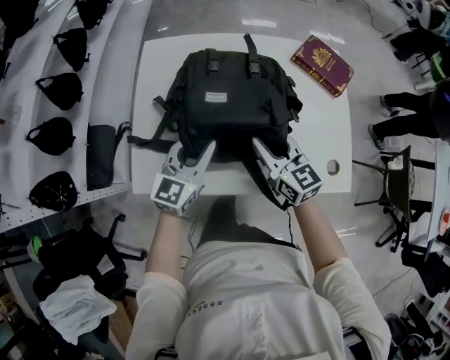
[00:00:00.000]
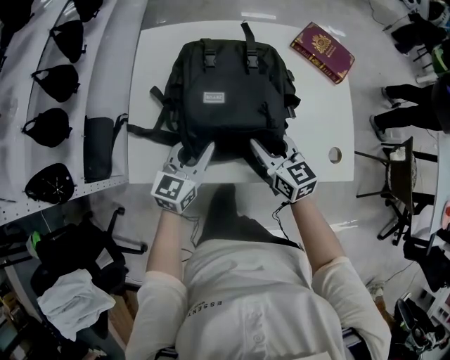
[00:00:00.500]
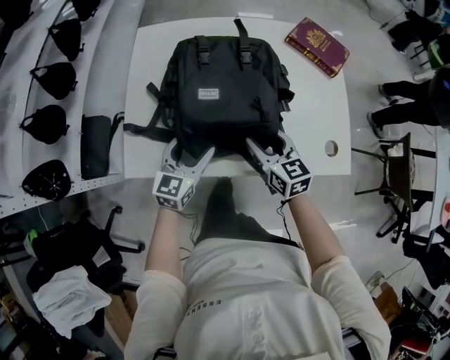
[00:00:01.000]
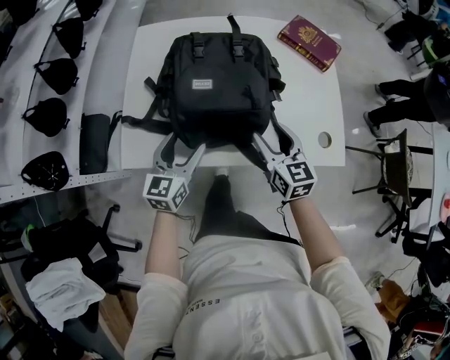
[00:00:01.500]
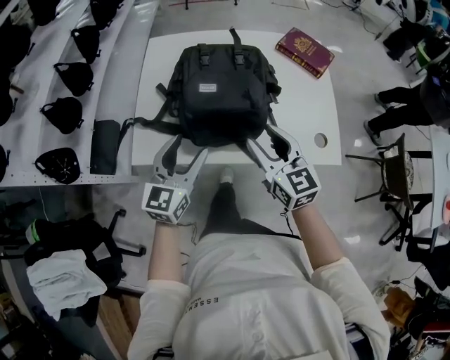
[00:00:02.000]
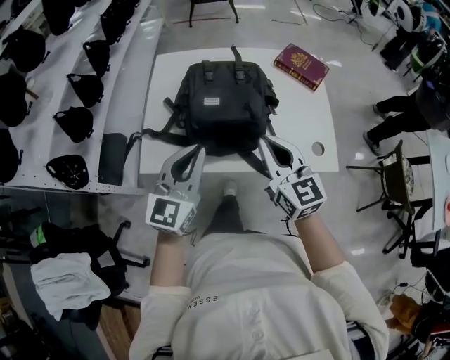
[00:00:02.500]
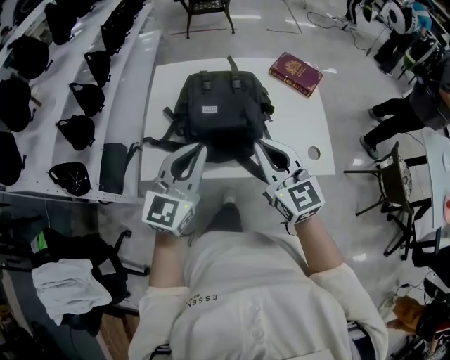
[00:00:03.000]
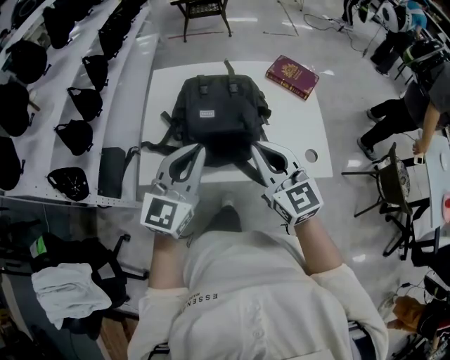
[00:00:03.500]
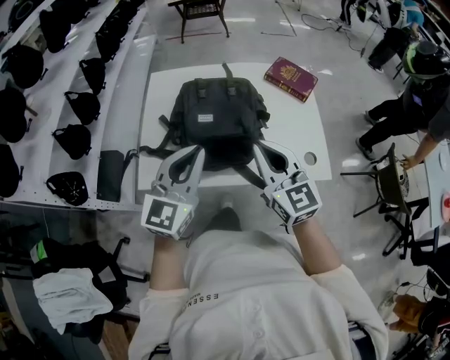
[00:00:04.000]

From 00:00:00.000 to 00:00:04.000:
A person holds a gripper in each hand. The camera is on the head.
From 00:00:00.000 to 00:00:02.000: Both grippers move backward and upward, approximately 15 cm. The right gripper opens. Meanwhile the left gripper opens its fingers.
From 00:00:02.000 to 00:00:04.000: The two grippers go approximately 10 cm upward. The right gripper closes; the left gripper closes.

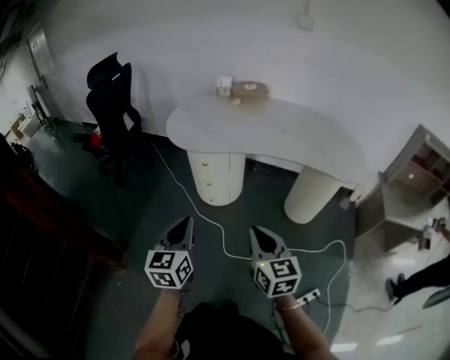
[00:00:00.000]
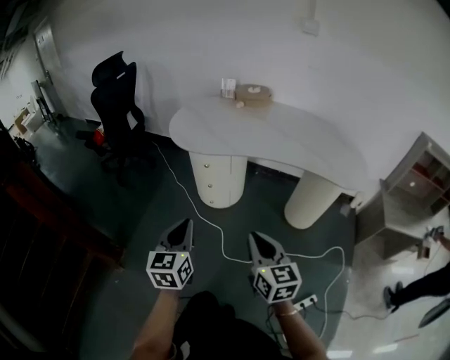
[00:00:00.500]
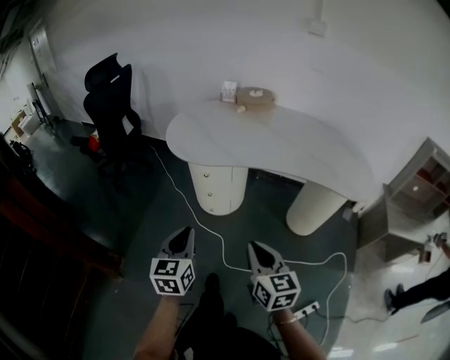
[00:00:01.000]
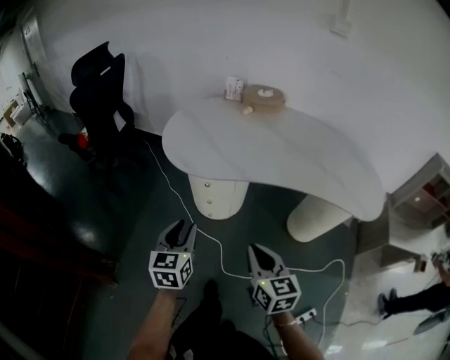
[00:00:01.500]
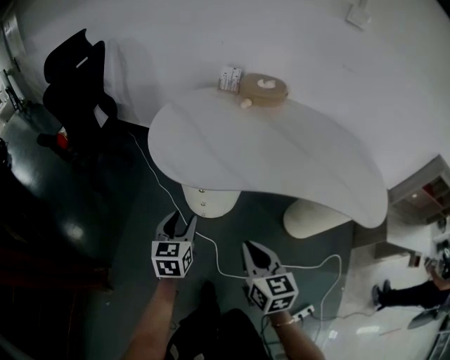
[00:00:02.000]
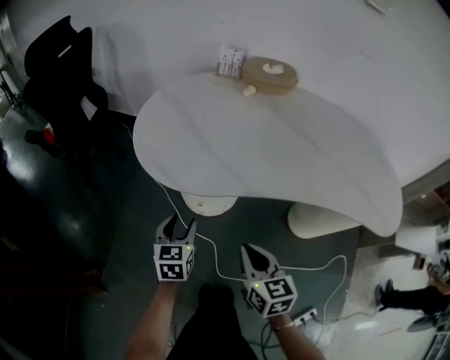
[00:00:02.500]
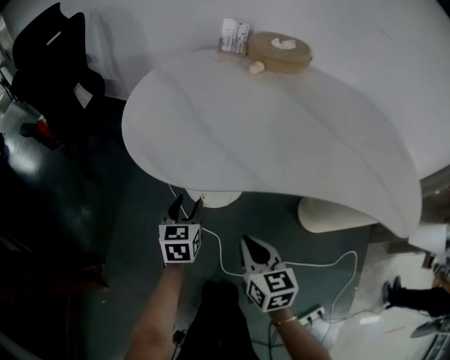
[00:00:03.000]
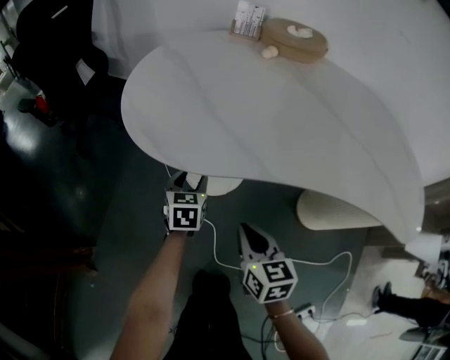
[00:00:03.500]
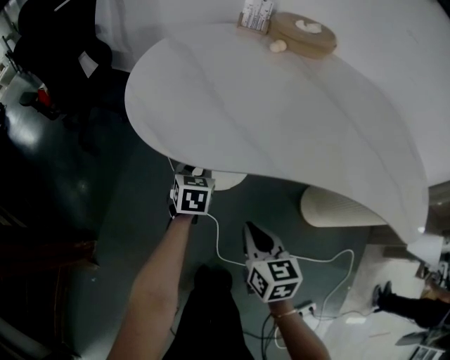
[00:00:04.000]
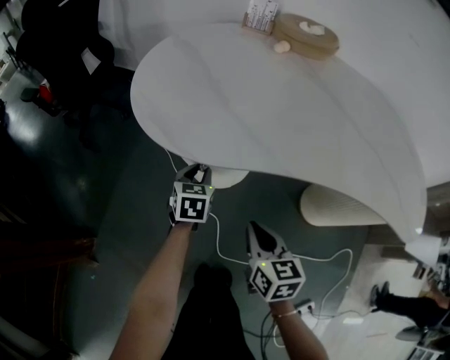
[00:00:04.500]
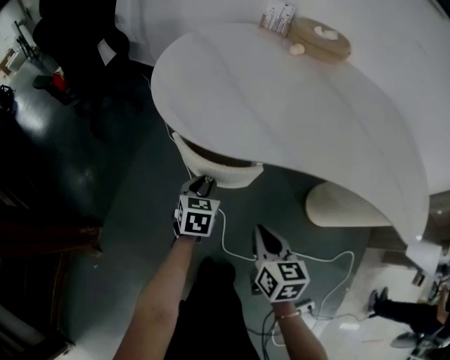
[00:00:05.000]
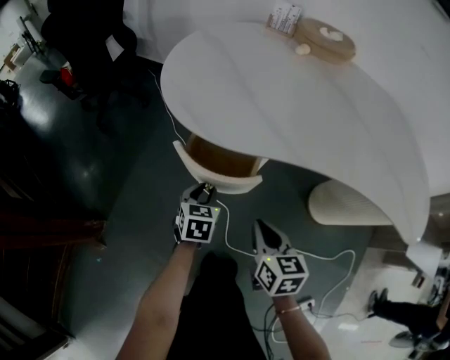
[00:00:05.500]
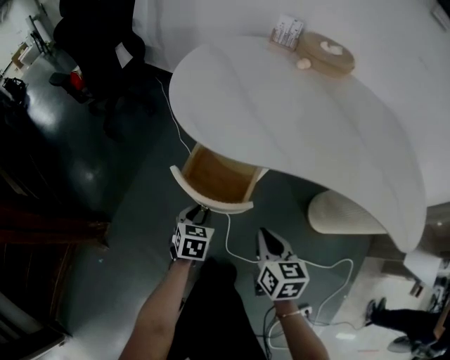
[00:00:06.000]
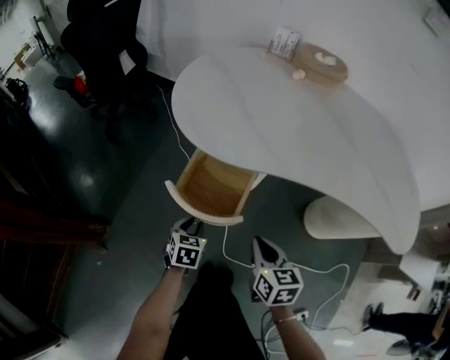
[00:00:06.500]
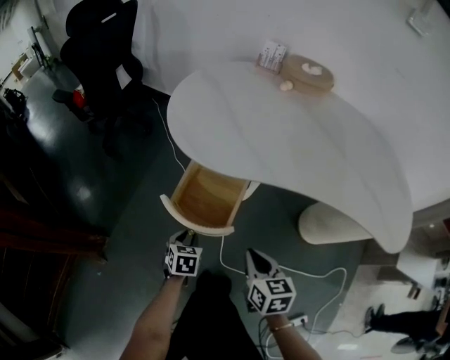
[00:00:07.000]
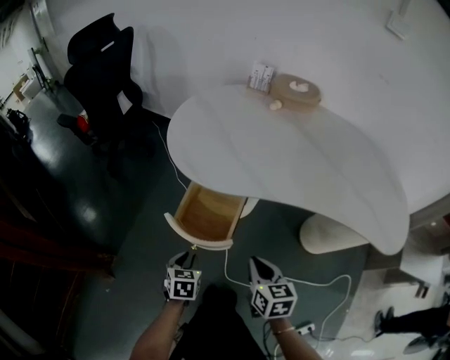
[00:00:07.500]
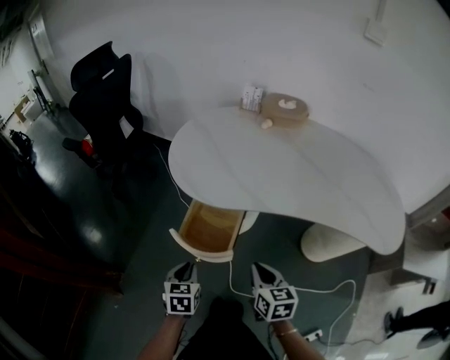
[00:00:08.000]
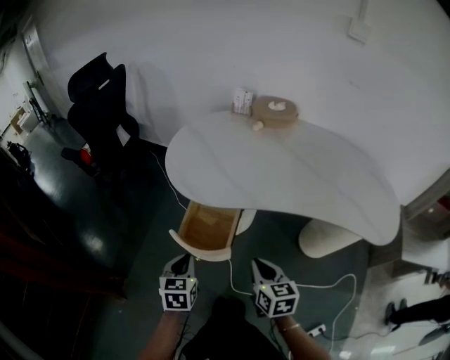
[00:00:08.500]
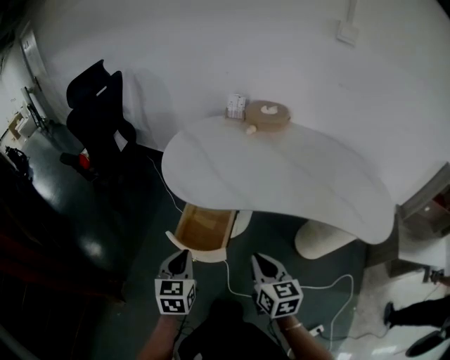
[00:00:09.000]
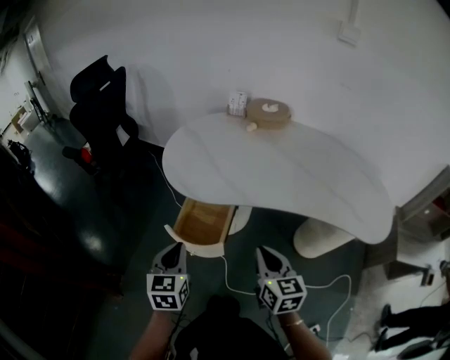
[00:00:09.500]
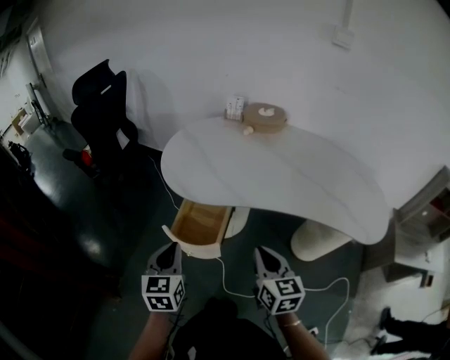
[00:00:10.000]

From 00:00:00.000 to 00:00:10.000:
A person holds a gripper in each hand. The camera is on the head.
From 00:00:00.000 to 00:00:02.000: The right gripper heads forward, covering roughly 25 cm, while the left gripper goes some 30 cm forward and downward, and opens.
From 00:00:02.000 to 00:00:04.000: Both grippers travel together downward and forward, some 25 cm.
From 00:00:04.000 to 00:00:06.000: The left gripper shifts approximately 20 cm backward, while the right gripper moves approximately 5 cm.
From 00:00:06.000 to 00:00:08.000: The right gripper moves upward, roughly 10 cm; the left gripper travels upward and backward by approximately 15 cm.
From 00:00:08.000 to 00:00:10.000: The right gripper shifts about 10 cm upward. The left gripper moves upward, roughly 15 cm, and changes its angle by approximately 20 degrees.

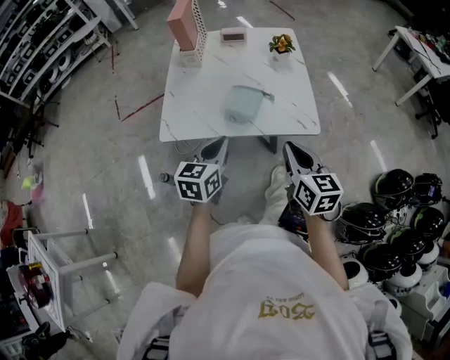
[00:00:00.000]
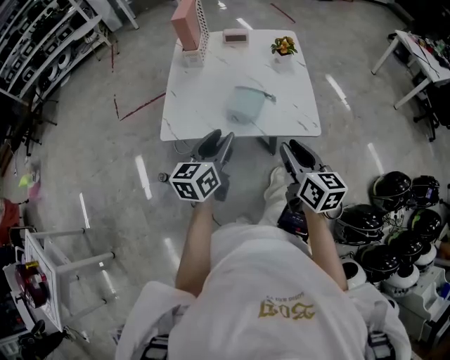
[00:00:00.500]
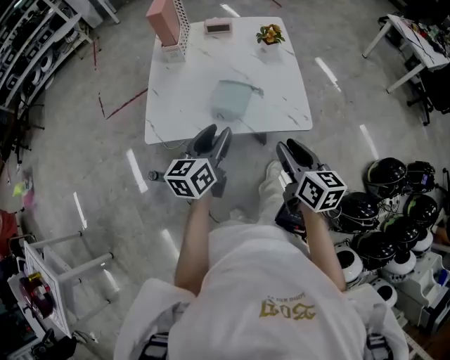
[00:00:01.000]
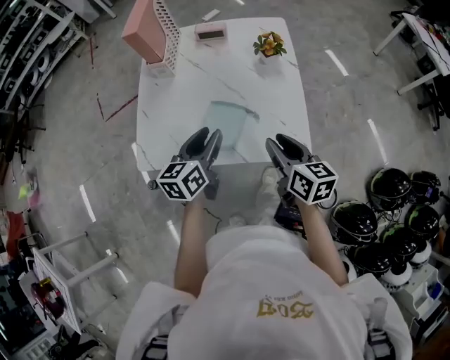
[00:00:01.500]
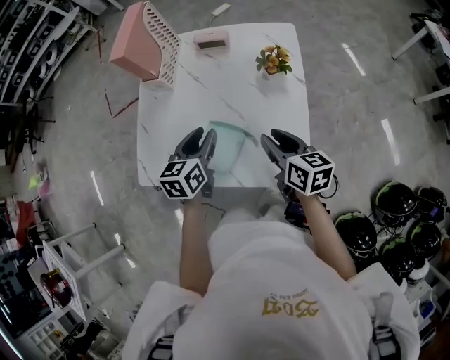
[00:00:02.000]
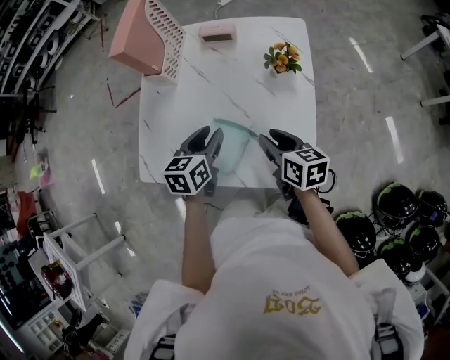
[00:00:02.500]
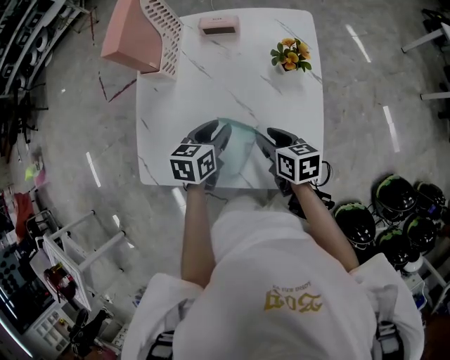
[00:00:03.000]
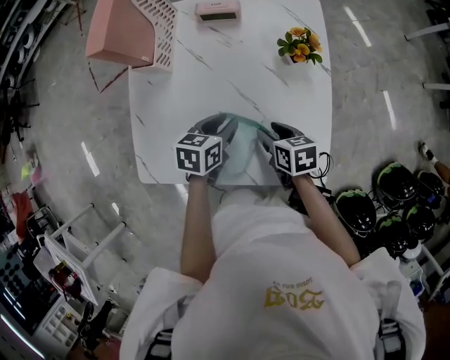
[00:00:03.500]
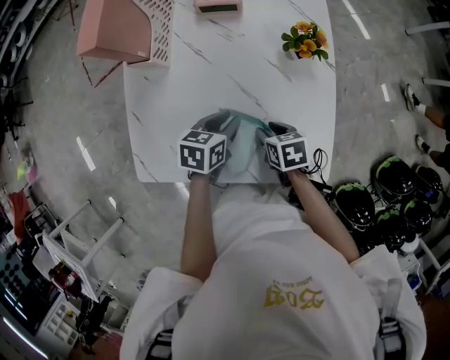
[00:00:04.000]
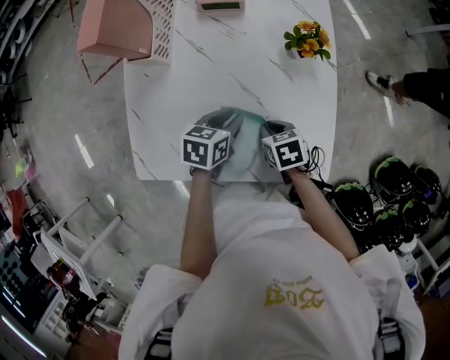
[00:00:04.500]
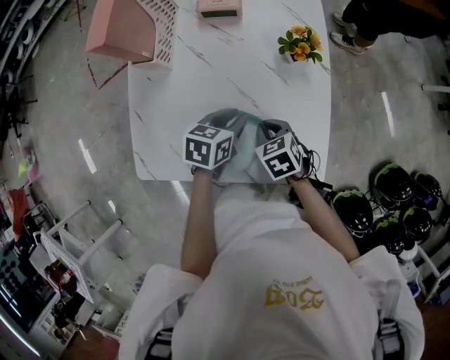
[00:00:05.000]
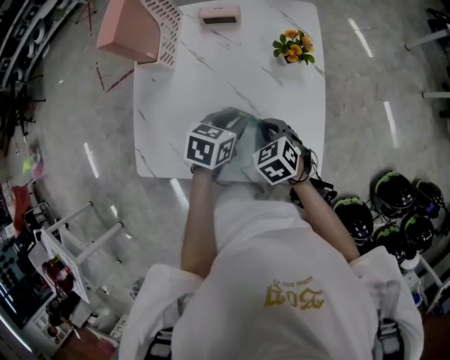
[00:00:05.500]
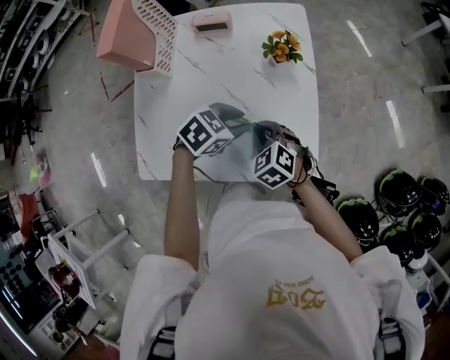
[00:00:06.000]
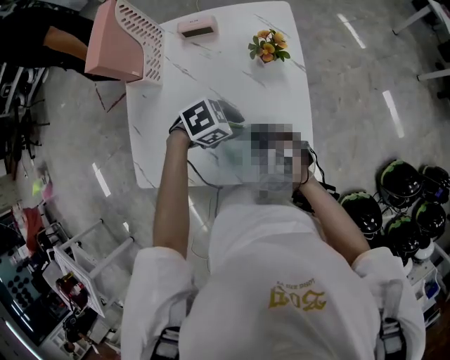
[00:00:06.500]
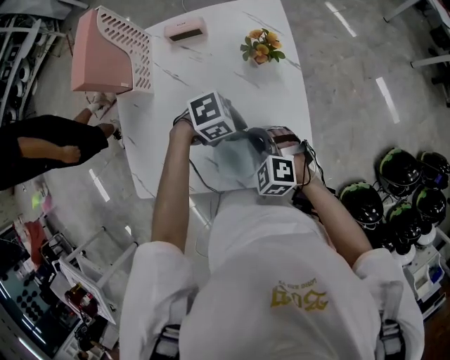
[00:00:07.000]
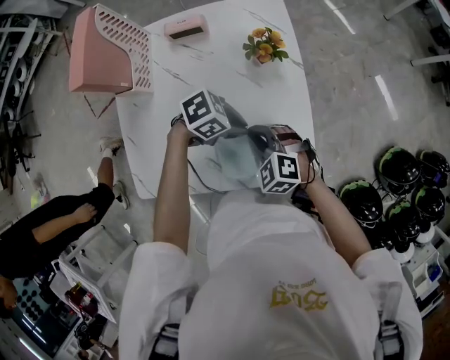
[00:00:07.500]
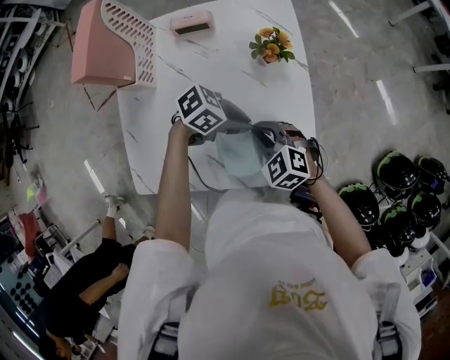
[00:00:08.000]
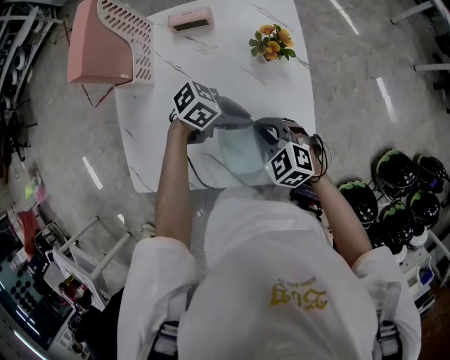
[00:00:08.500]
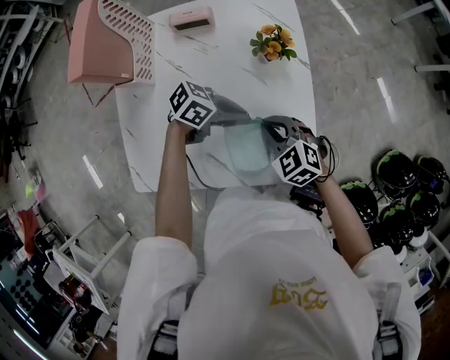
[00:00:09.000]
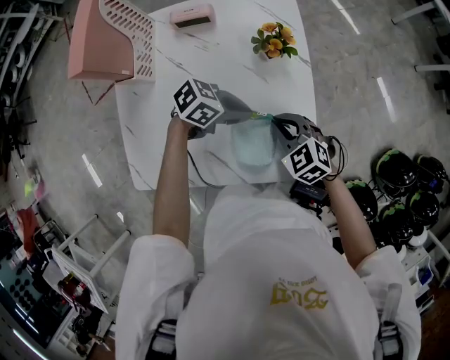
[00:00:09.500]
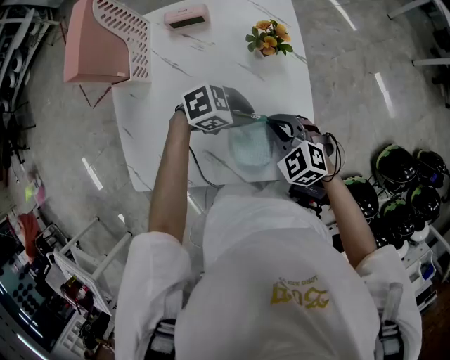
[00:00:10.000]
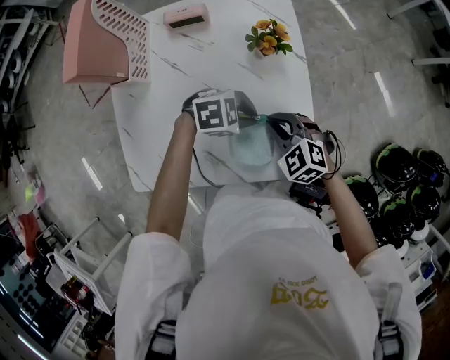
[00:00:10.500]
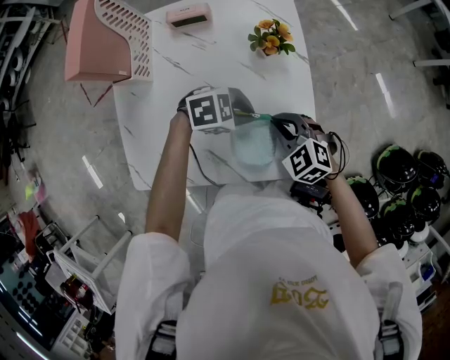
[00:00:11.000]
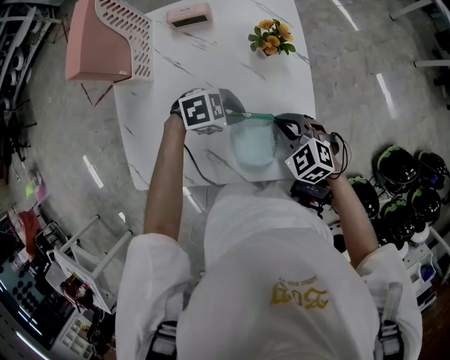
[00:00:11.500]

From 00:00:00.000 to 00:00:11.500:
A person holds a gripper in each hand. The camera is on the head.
From 00:00:00.000 to 00:00:02.000: Both grippers move forward, roughly 30 cm. The right gripper turns by about 20 degrees, and opens its fingers. Meanwhile the left gripper opens its fingers.
From 00:00:02.000 to 00:00:04.000: The left gripper goes about 15 cm downward, and swivels roughly 30 degrees; the right gripper shifts about 20 cm downward and to the left, and points its fingers about 30 degrees further downward.
From 00:00:04.000 to 00:00:06.000: The right gripper goes some 10 cm upward, twists about 50 degrees counterclockwise, seen from behind, and closes, while the left gripper changes place by approximately 10 cm, and rotates some 40 degrees.
From 00:00:06.000 to 00:00:07.500: The left gripper rotates about 30 degrees.
From 00:00:07.500 to 00:00:09.500: The right gripper shifts by about 5 cm.
From 00:00:09.500 to 00:00:11.500: The left gripper turns by some 30 degrees.

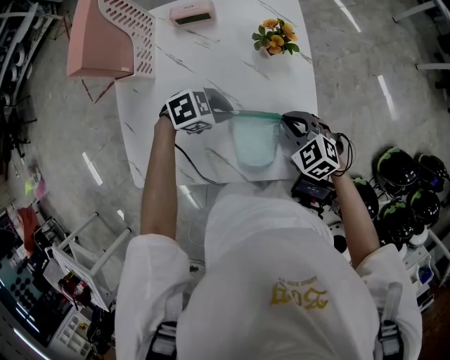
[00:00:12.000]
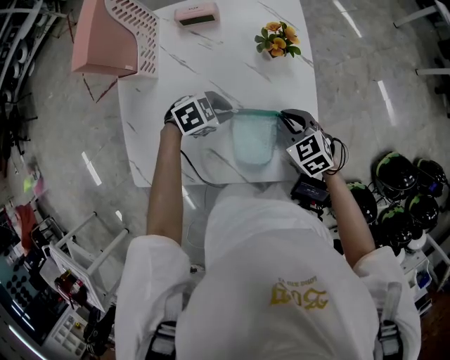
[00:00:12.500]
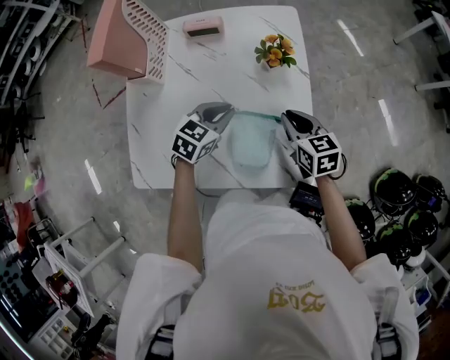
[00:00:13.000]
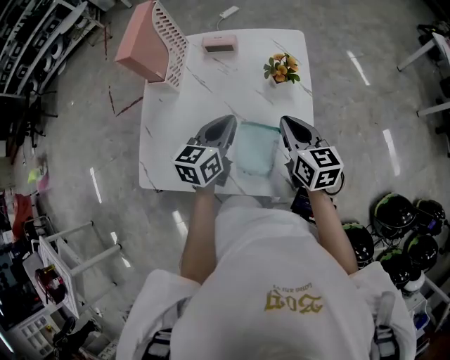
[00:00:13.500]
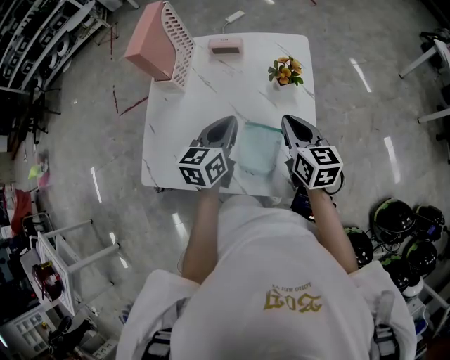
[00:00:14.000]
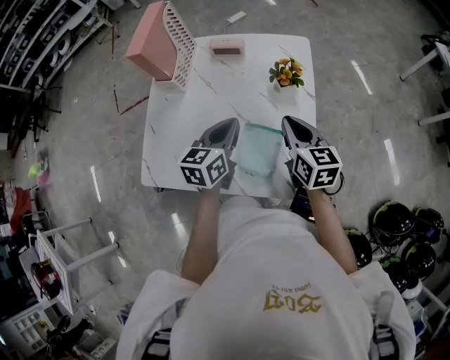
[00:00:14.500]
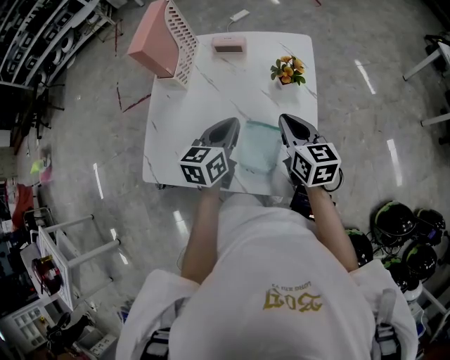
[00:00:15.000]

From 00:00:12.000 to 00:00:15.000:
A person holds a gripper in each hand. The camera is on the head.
From 00:00:12.000 to 00:00:13.500: The two grippers go approximately 15 cm upward. The left gripper angles its fingers upward, by about 30 degrees, while the right gripper swivels about 50 degrees.
From 00:00:13.500 to 00:00:15.000: The grippers move only a little.
